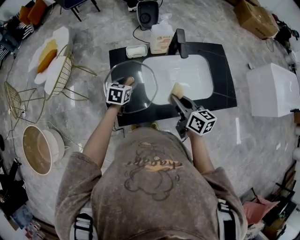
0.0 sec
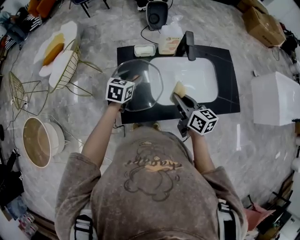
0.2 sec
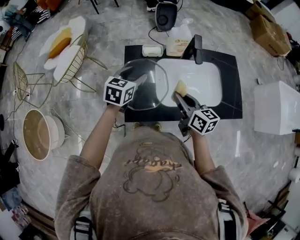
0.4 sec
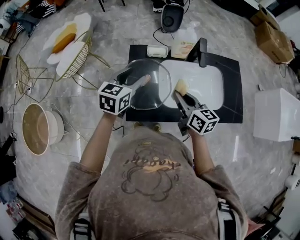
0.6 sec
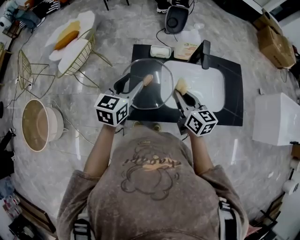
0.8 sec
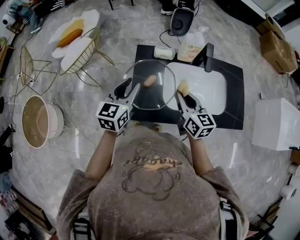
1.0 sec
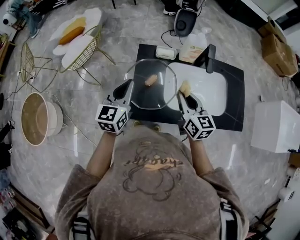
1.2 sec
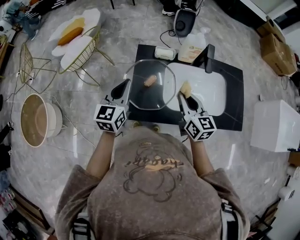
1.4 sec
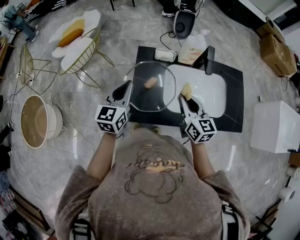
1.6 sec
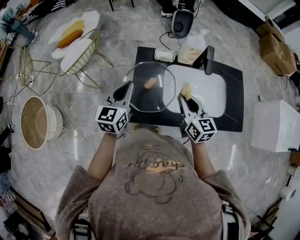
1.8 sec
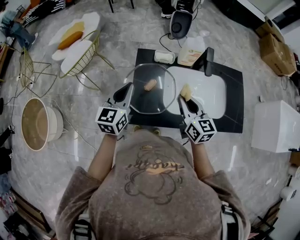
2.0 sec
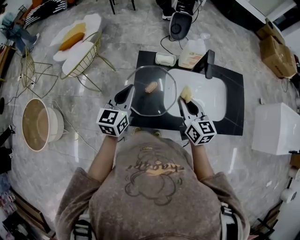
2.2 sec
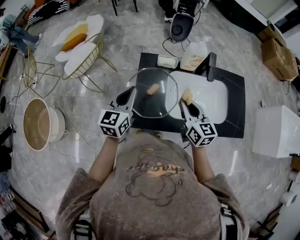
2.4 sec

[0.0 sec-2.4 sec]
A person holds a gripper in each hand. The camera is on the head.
0.0 sec to 1.2 sec: The left gripper goes approximately 20 cm upward, to the left and backward, angles its fingers upward, by roughly 30 degrees, and closes up. Meanwhile the right gripper moves to the left, about 5 cm, and changes its angle by about 20 degrees.
1.2 sec to 2.4 sec: Both grippers stay put.

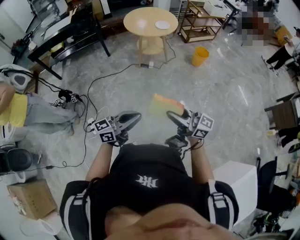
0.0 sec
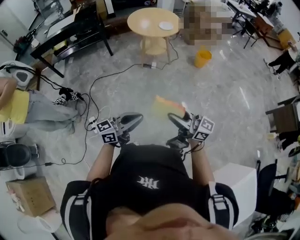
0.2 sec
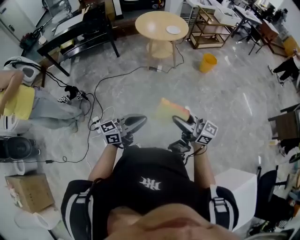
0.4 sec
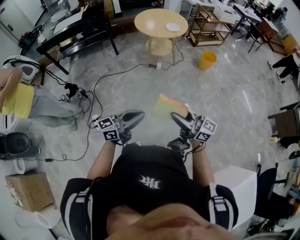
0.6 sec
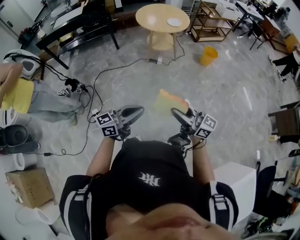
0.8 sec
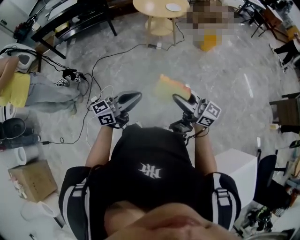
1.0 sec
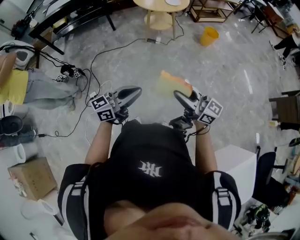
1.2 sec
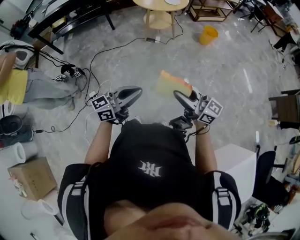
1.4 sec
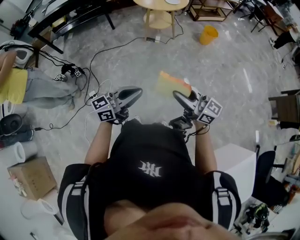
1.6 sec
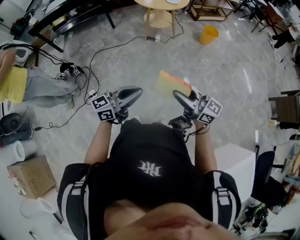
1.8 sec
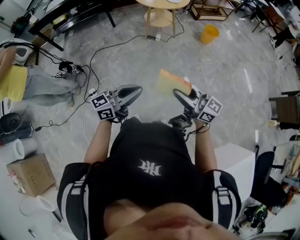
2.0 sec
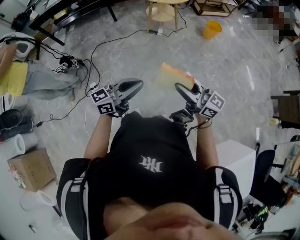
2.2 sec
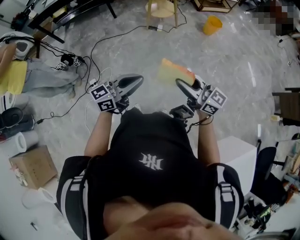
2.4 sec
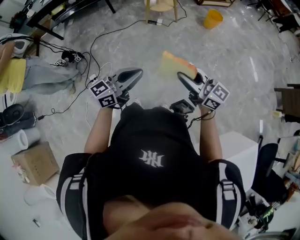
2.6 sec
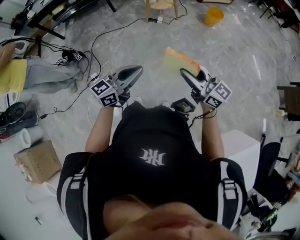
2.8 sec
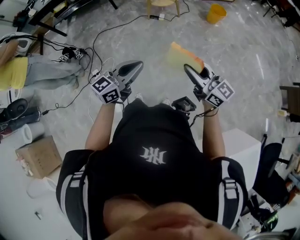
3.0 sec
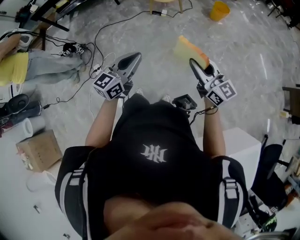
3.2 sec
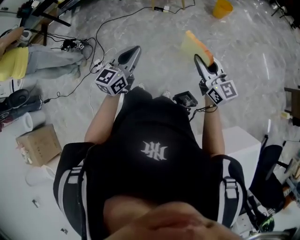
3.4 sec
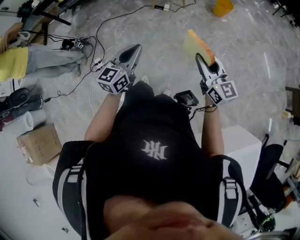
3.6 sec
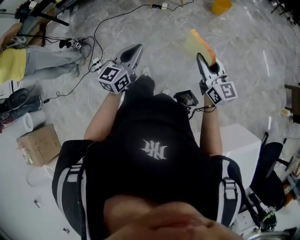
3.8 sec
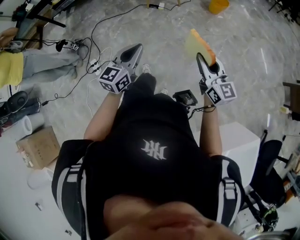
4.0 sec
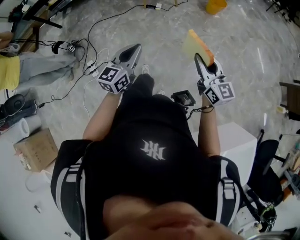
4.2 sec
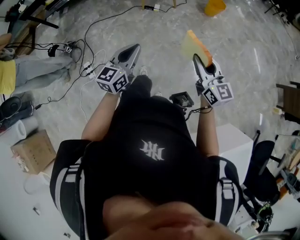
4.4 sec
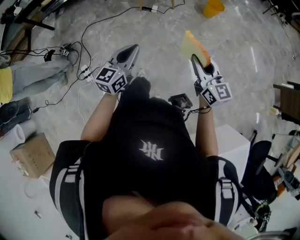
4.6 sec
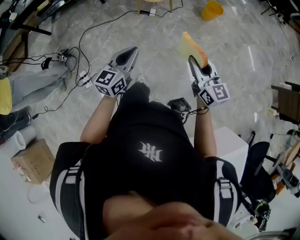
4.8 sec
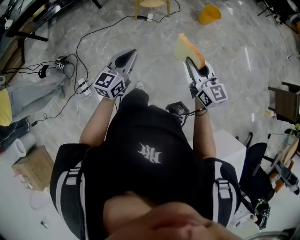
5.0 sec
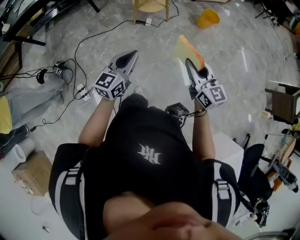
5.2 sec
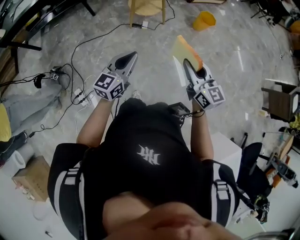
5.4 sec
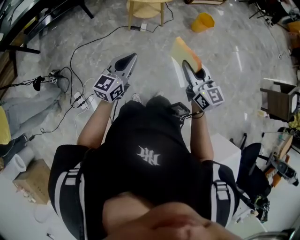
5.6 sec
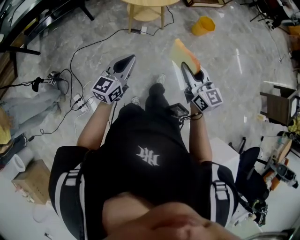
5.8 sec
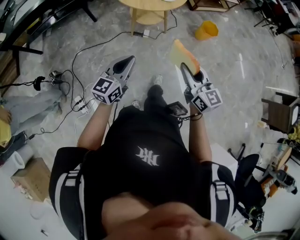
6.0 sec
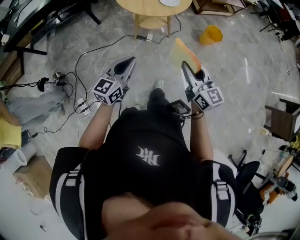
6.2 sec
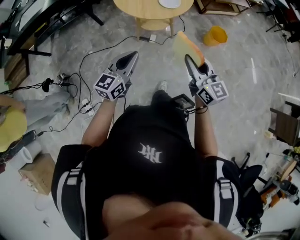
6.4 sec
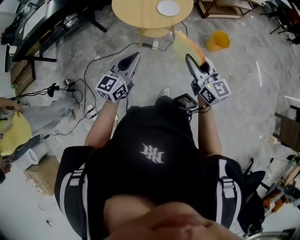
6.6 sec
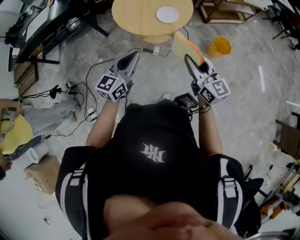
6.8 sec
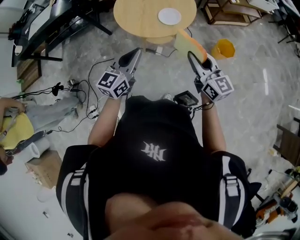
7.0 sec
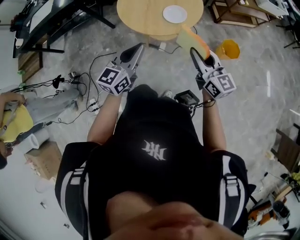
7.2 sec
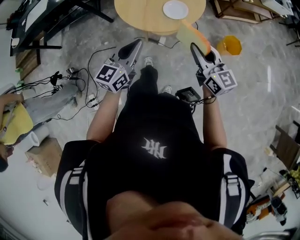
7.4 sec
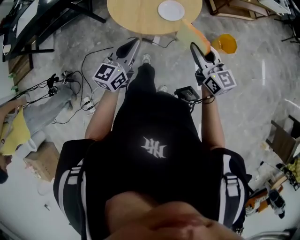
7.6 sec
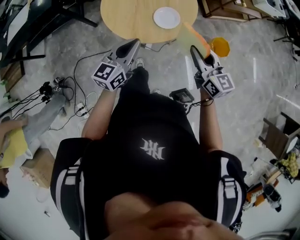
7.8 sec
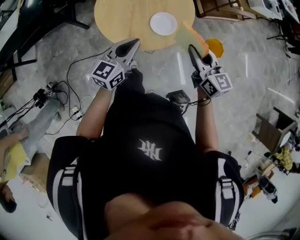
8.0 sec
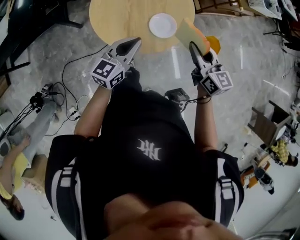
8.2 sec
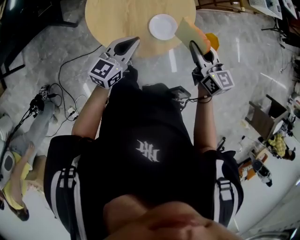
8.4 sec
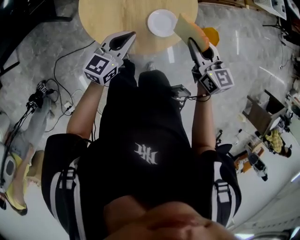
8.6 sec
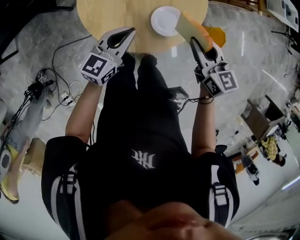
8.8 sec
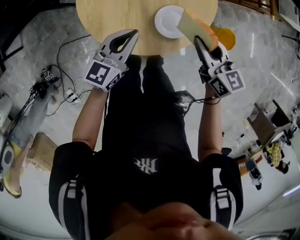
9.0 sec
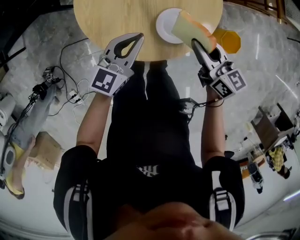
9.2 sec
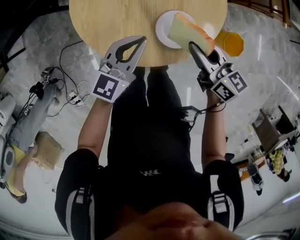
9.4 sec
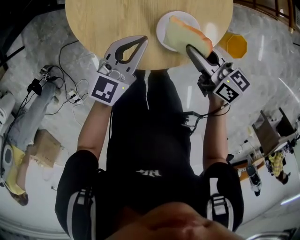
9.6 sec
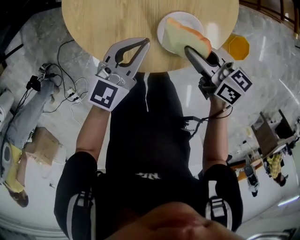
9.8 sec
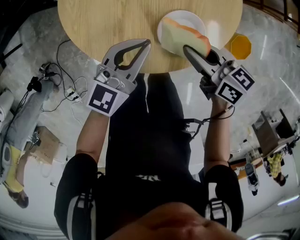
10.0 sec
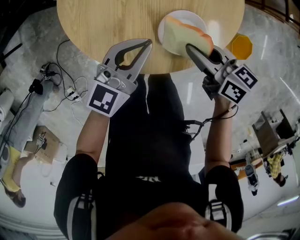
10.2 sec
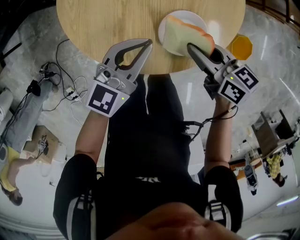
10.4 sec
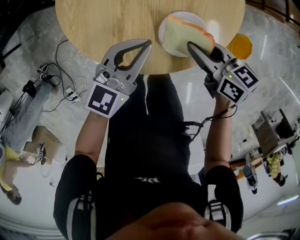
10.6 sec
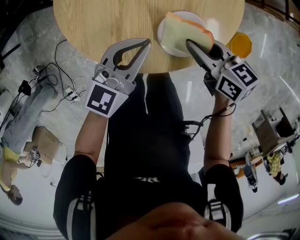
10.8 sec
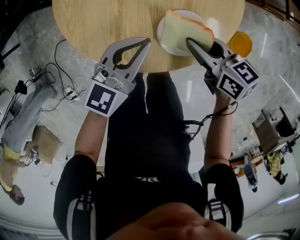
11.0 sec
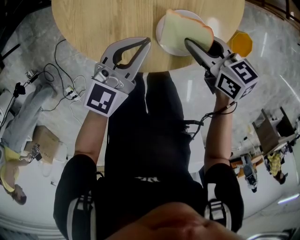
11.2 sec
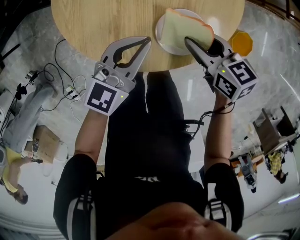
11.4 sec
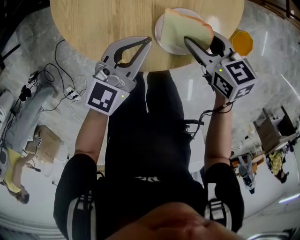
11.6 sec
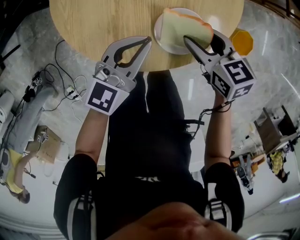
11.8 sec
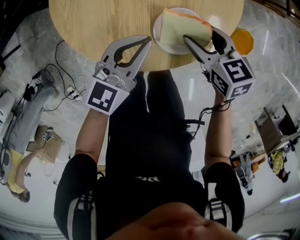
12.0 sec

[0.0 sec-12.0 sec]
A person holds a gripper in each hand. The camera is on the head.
0.0 sec to 1.6 sec: The grippers stay close to where they were, moving slightly.
1.6 sec to 3.0 sec: Both grippers move to the right, about 10 cm.
3.0 sec to 4.4 sec: The left gripper goes about 10 cm forward. The right gripper travels to the right and forward by about 10 cm, and rotates some 20 degrees.
4.4 sec to 6.0 sec: Both grippers move forward, approximately 30 cm.
6.0 sec to 7.6 sec: Both grippers travel together forward, some 35 cm.
7.6 sec to 9.0 sec: The grippers both shift forward and downward by about 25 cm.
9.0 sec to 10.4 sec: The right gripper shifts some 10 cm downward, and swivels about 30 degrees; the left gripper shifts by about 5 cm.
10.4 sec to 12.0 sec: The right gripper rotates some 20 degrees, and opens up.

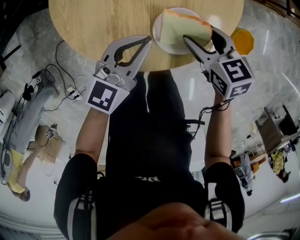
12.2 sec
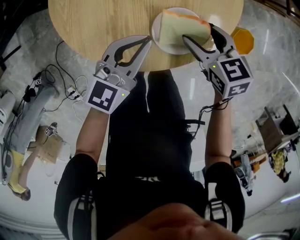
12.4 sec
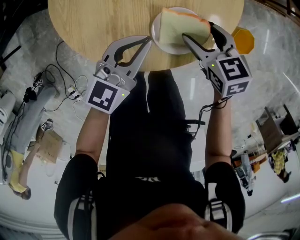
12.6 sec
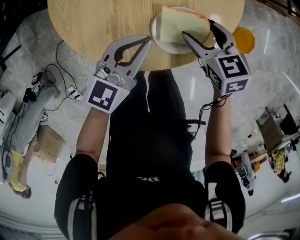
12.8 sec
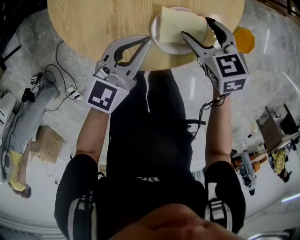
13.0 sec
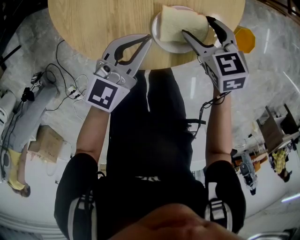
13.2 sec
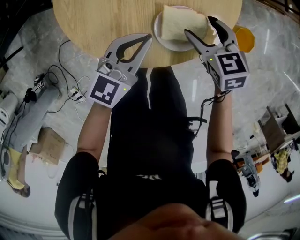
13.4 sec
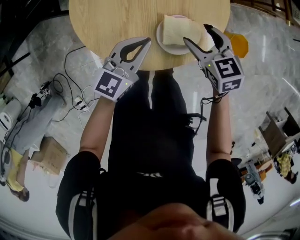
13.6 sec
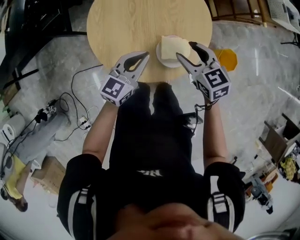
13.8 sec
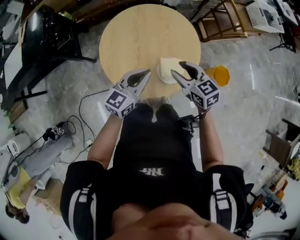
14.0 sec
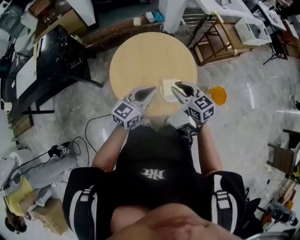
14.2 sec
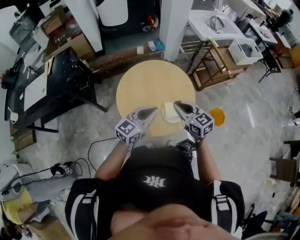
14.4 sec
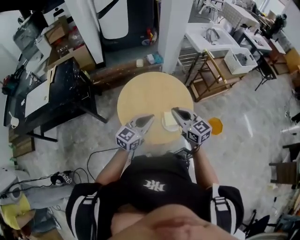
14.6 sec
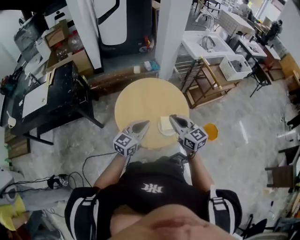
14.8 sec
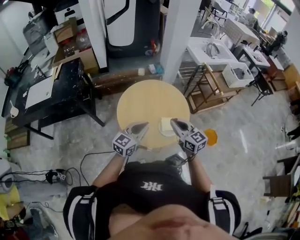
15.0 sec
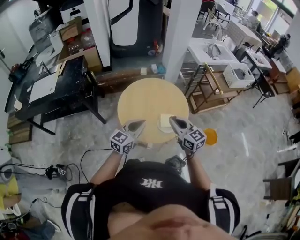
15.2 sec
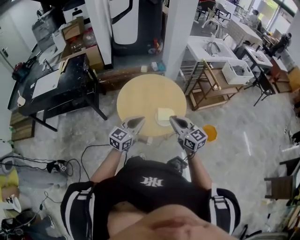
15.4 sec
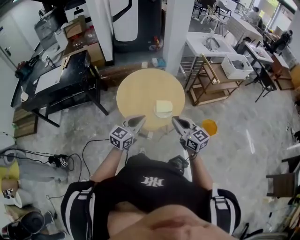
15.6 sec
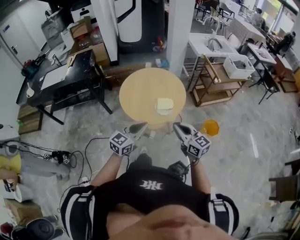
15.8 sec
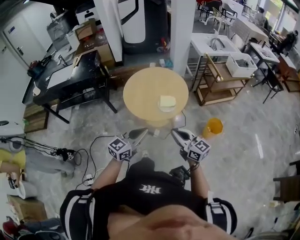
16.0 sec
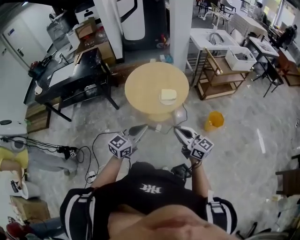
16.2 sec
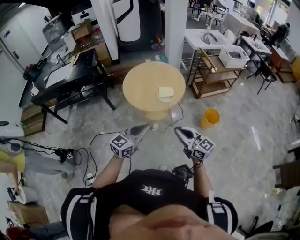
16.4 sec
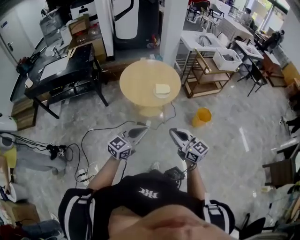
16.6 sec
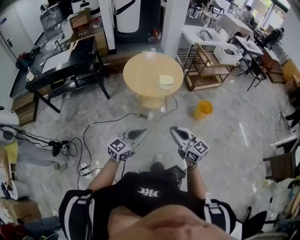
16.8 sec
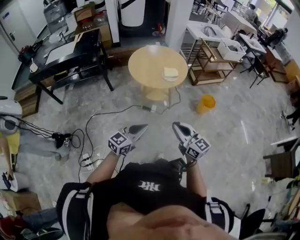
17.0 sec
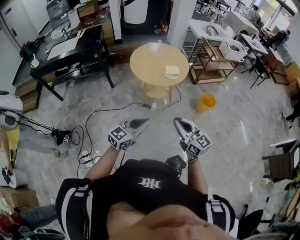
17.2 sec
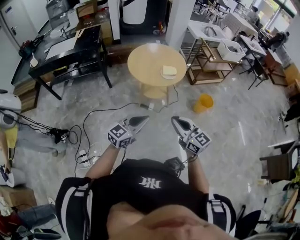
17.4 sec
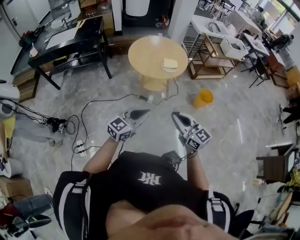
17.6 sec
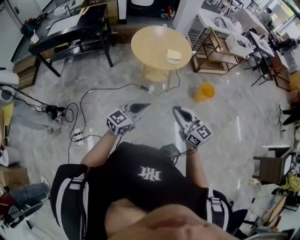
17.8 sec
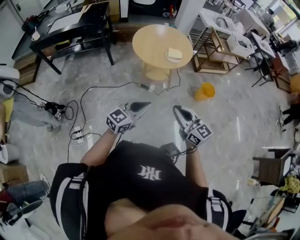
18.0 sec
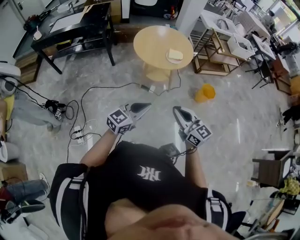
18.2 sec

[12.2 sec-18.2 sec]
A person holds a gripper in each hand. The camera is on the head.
12.2 sec to 13.8 sec: The left gripper travels upward by about 5 cm. Meanwhile the right gripper moves upward, approximately 15 cm.
13.8 sec to 15.2 sec: The two grippers go approximately 20 cm upward and backward. The right gripper rotates some 30 degrees, and closes.
15.2 sec to 16.6 sec: Both grippers travel together backward, roughly 35 cm.
16.6 sec to 18.2 sec: The grippers both shift backward by approximately 10 cm.

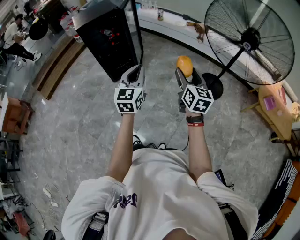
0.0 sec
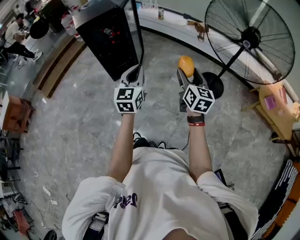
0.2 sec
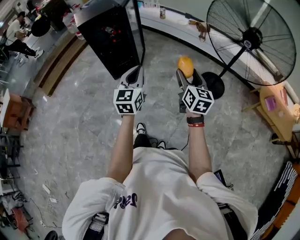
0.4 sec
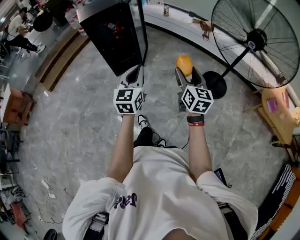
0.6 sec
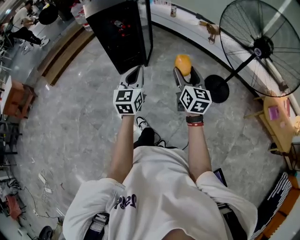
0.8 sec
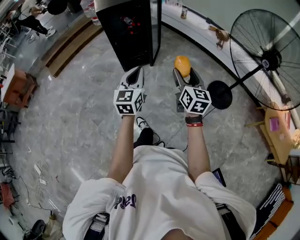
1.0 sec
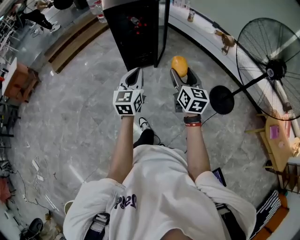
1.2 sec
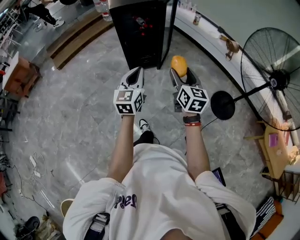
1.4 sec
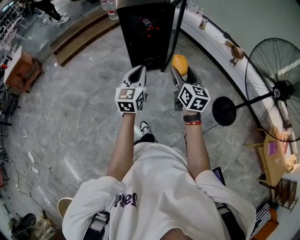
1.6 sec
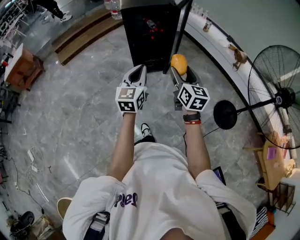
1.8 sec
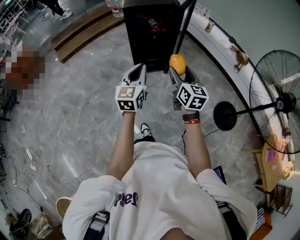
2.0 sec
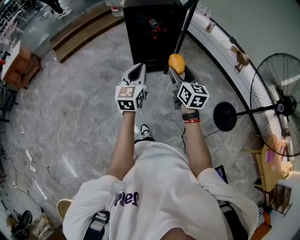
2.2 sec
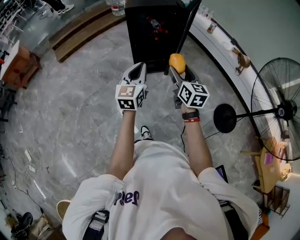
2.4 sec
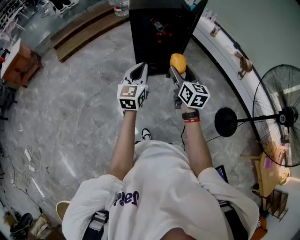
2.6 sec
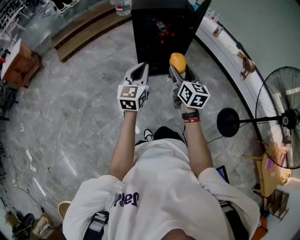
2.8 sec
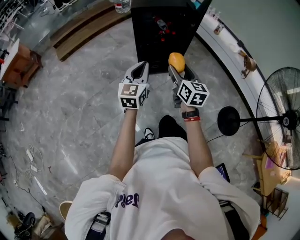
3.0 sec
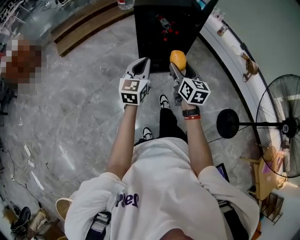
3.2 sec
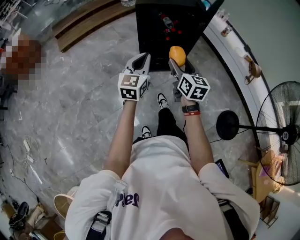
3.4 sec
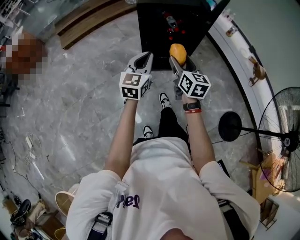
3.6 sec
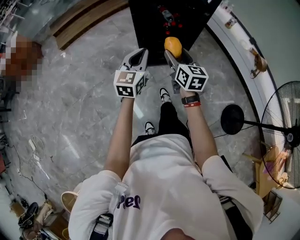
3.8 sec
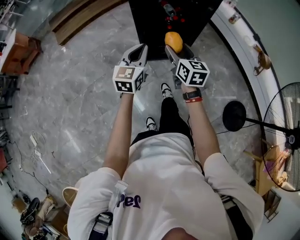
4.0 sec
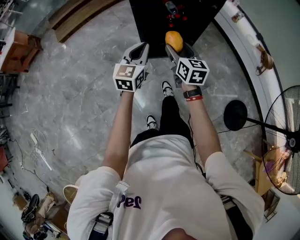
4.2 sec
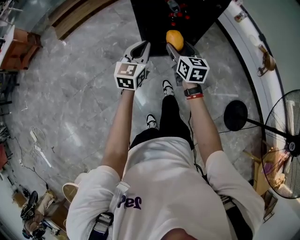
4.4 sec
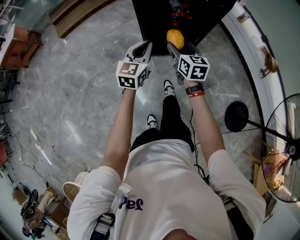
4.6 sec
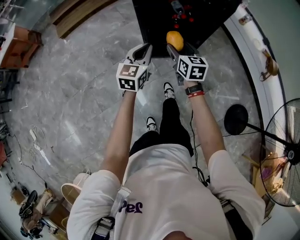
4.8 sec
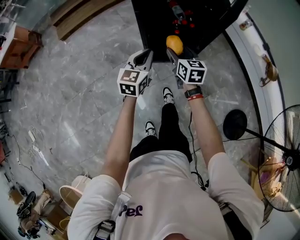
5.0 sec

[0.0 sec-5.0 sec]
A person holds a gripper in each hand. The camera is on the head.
0.0 sec to 1.6 sec: The two grippers go roughly 25 cm to the left and forward. The right gripper swivels approximately 20 degrees.
1.6 sec to 3.4 sec: The left gripper heads forward, covering approximately 30 cm, while the right gripper travels forward and to the left by approximately 35 cm.
3.4 sec to 5.0 sec: Both grippers move forward and downward, roughly 20 cm.
